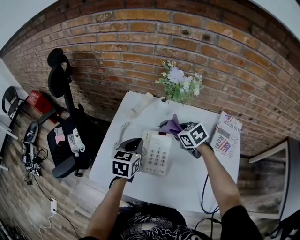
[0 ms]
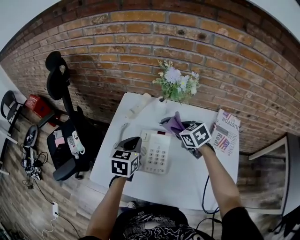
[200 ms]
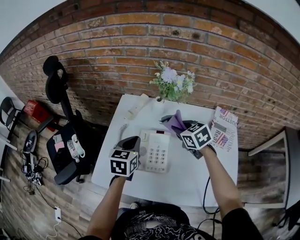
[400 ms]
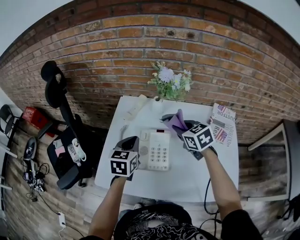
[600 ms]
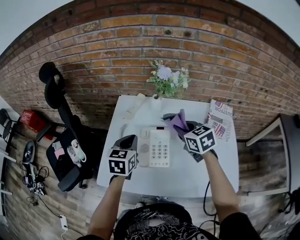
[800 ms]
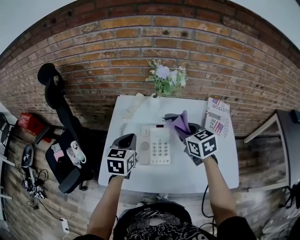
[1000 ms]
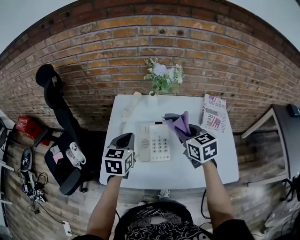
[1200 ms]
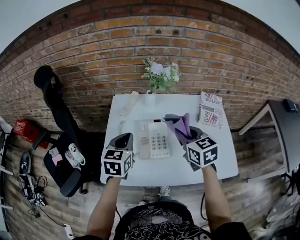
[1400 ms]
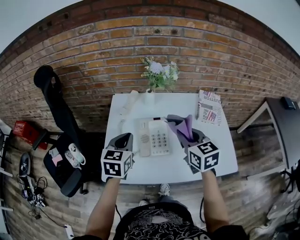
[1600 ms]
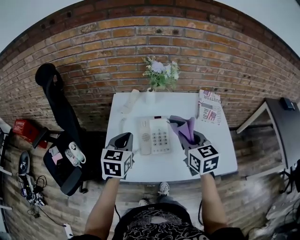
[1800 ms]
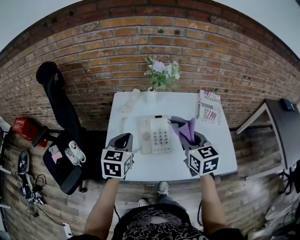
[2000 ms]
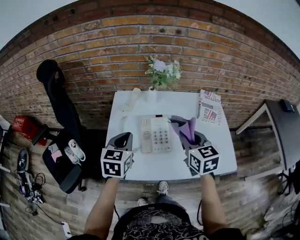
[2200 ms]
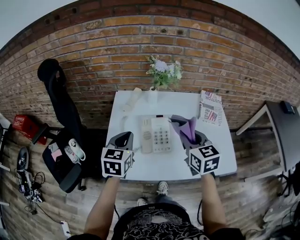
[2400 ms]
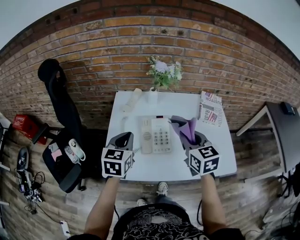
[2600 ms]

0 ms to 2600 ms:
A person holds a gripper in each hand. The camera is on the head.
0 ms to 1200 ms: The right gripper moves upward and backward, approximately 15 cm, and turns by approximately 30 degrees; the left gripper moves upward, roughly 5 cm.
1200 ms to 2600 ms: The left gripper ends up roughly 5 cm from where it was. The right gripper heads backward, covering roughly 10 cm.

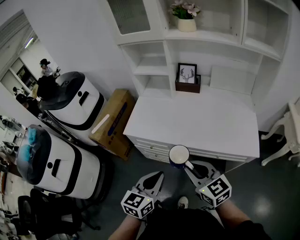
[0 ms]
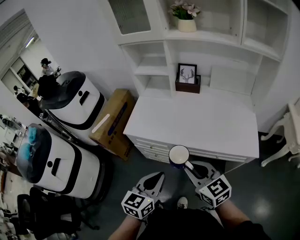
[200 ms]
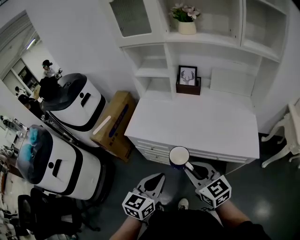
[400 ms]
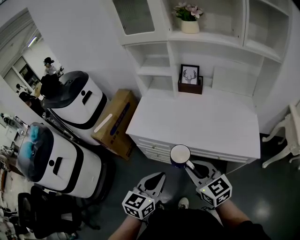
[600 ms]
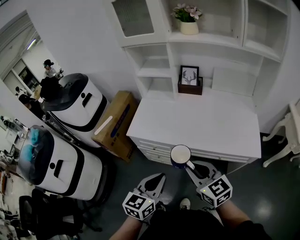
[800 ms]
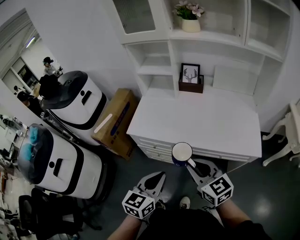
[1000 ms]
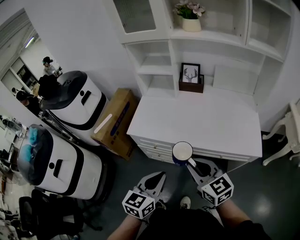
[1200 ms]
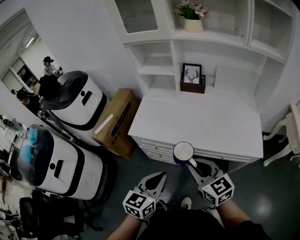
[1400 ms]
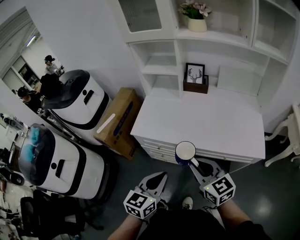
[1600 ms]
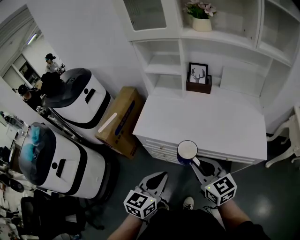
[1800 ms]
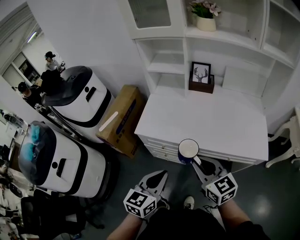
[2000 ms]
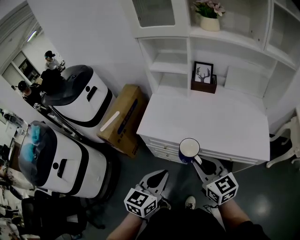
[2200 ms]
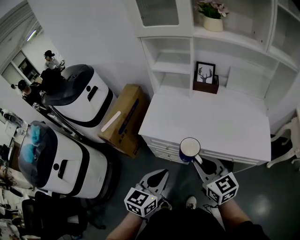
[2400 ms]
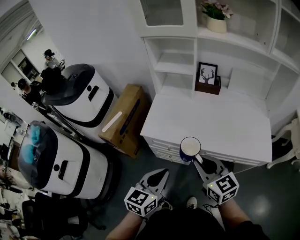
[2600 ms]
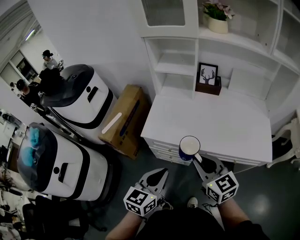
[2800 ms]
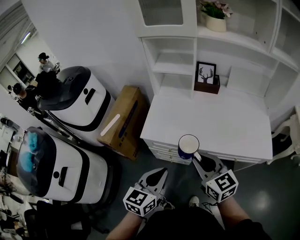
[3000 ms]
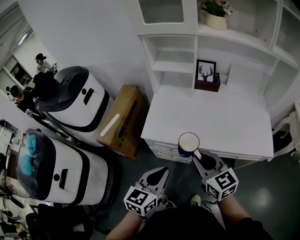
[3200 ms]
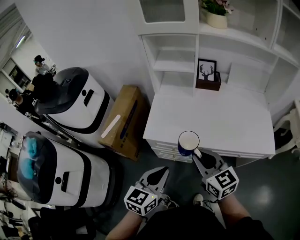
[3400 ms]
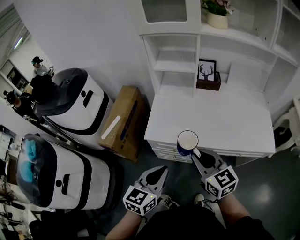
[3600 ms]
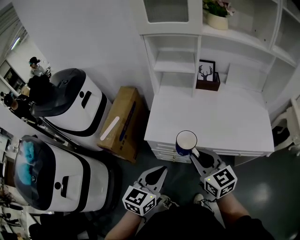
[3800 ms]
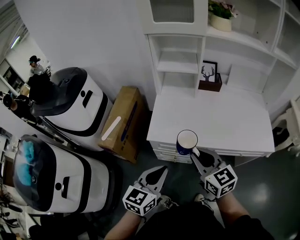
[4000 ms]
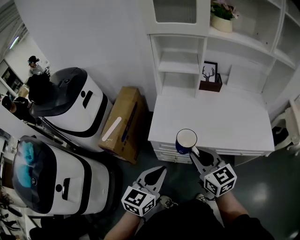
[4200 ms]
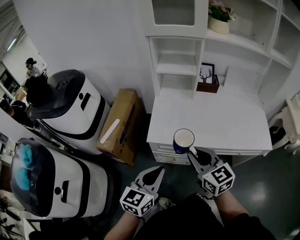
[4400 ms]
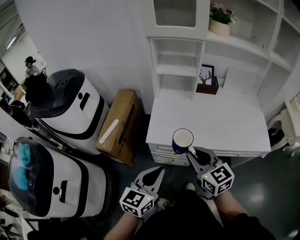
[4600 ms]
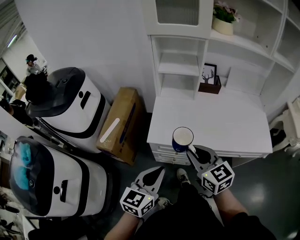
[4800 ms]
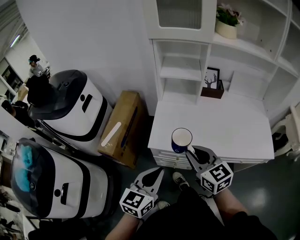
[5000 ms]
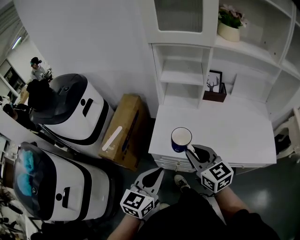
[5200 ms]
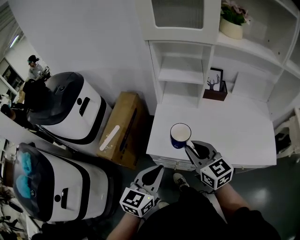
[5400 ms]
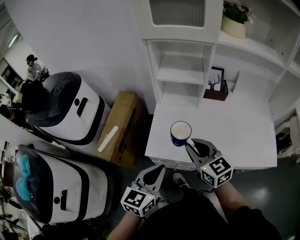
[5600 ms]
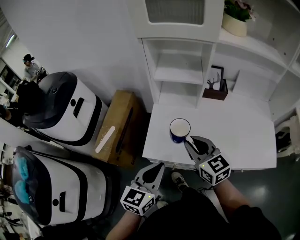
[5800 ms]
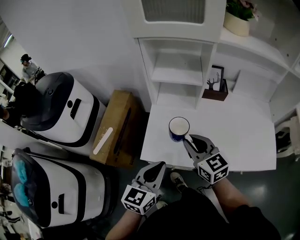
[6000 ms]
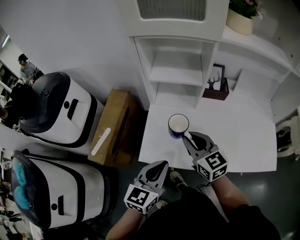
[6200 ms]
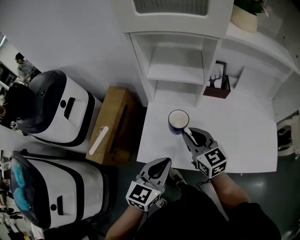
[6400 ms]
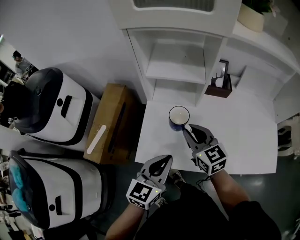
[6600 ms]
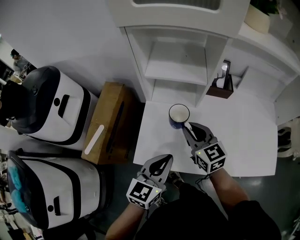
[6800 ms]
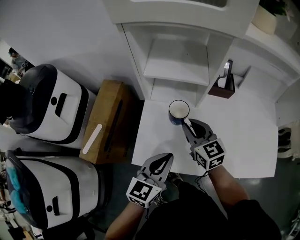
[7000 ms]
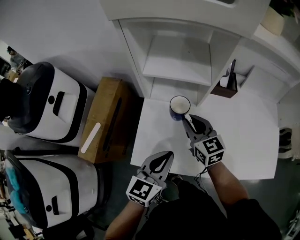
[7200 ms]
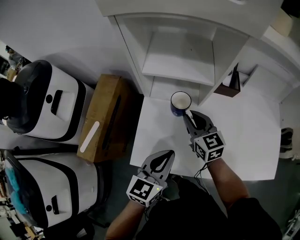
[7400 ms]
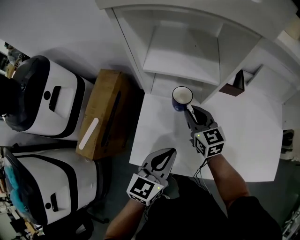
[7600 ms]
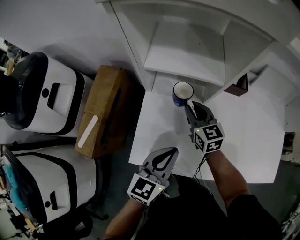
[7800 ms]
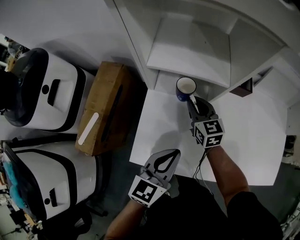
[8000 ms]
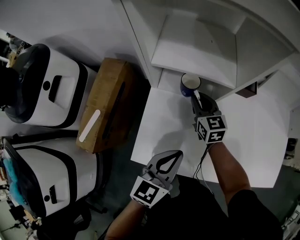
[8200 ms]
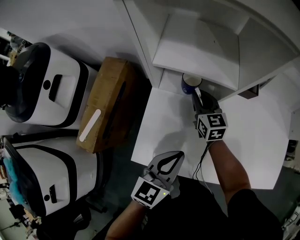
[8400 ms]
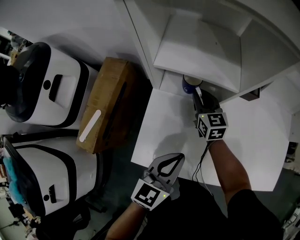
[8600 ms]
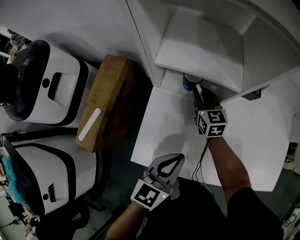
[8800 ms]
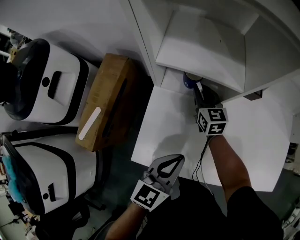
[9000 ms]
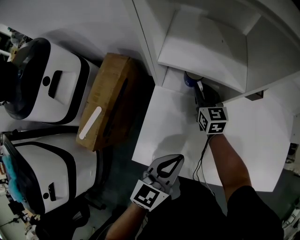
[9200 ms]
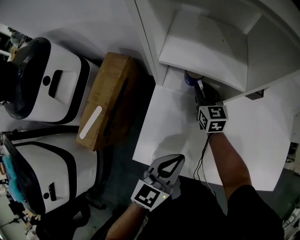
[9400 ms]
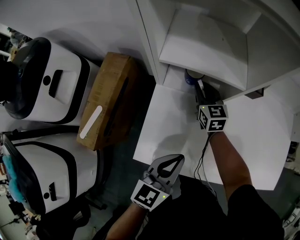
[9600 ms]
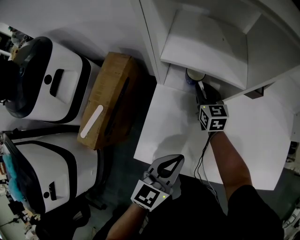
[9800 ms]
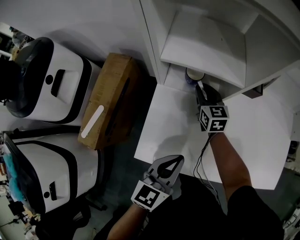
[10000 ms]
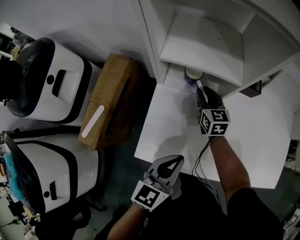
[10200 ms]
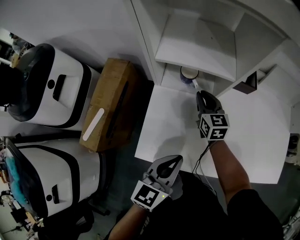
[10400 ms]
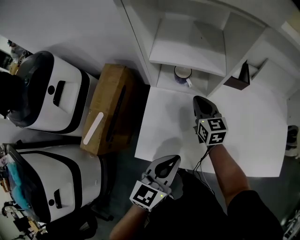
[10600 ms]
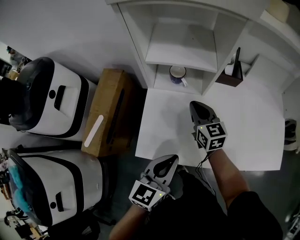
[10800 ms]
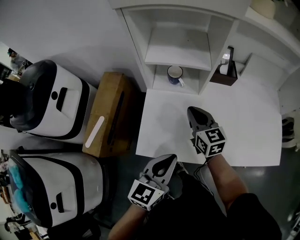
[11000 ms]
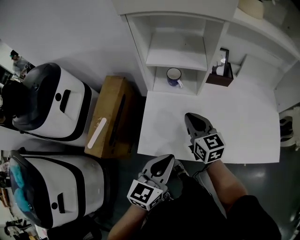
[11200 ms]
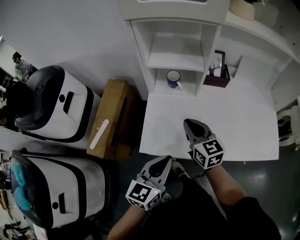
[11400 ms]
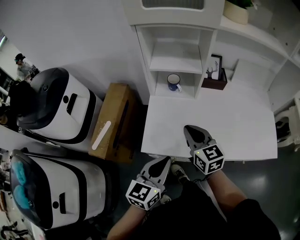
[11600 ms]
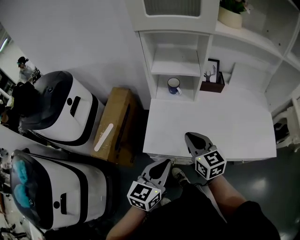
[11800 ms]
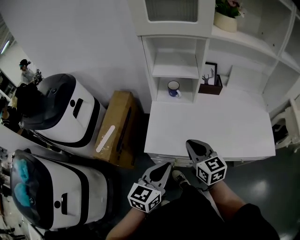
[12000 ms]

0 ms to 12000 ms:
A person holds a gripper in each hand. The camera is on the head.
0 ms to 1600 ms: The grippers stay close to where they were, moving slightly.
1600 ms to 3000 ms: Both grippers travel together to the left and forward, approximately 10 cm.
3000 ms to 4400 ms: The grippers both shift to the left by about 10 cm.
4400 ms to 6000 ms: The two grippers go roughly 20 cm forward.
6000 ms to 7600 ms: Both grippers travel together forward and downward, roughly 20 cm.
7600 ms to 9000 ms: The right gripper moves forward and downward, roughly 10 cm.
9000 ms to 10400 ms: The right gripper ends up approximately 5 cm from where it was.
10400 ms to 12000 ms: The left gripper goes some 15 cm backward. The right gripper travels backward and upward by approximately 35 cm.

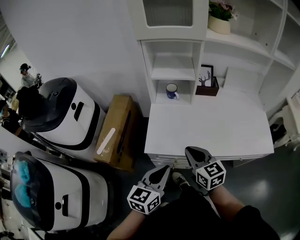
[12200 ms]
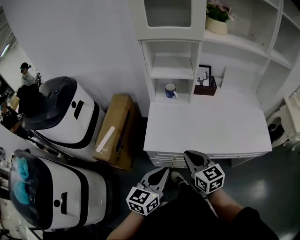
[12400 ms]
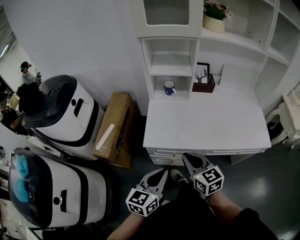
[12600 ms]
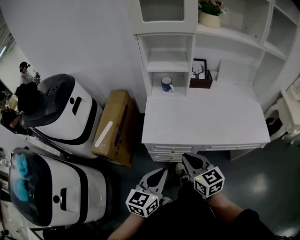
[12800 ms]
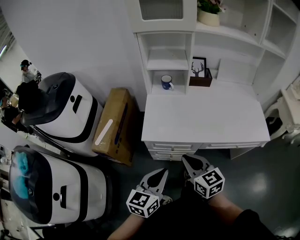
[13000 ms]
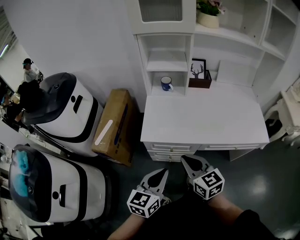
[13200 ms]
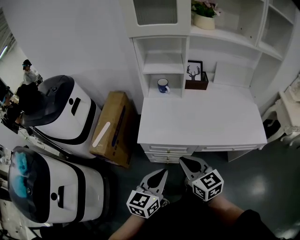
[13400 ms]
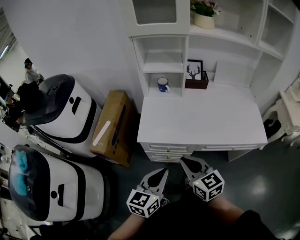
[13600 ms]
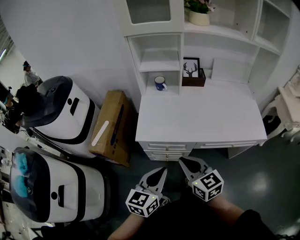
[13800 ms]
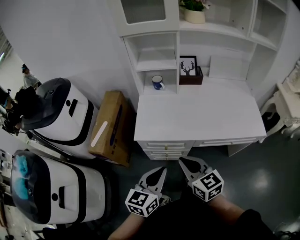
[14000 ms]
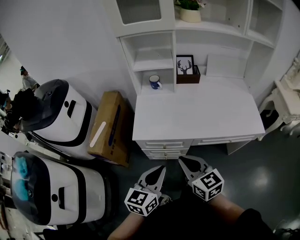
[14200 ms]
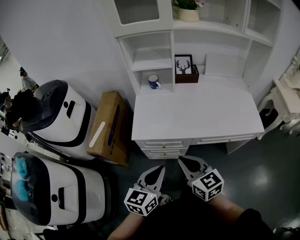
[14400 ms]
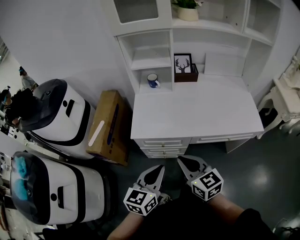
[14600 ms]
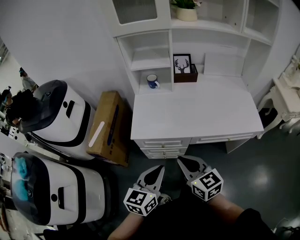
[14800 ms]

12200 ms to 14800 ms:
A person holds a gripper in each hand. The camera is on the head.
12200 ms to 13400 ms: Both grippers move backward, roughly 10 cm.
13400 ms to 14800 ms: The grippers make only small movements.

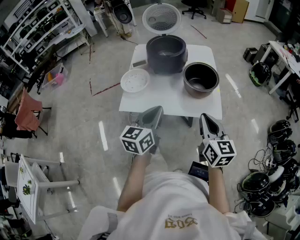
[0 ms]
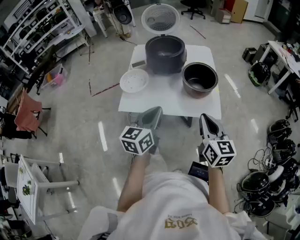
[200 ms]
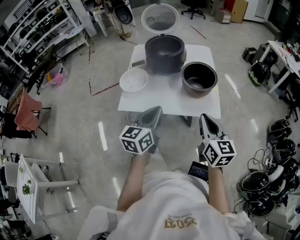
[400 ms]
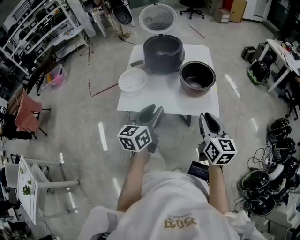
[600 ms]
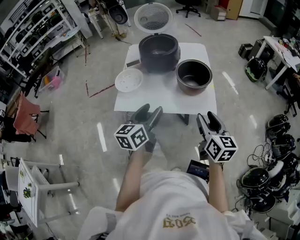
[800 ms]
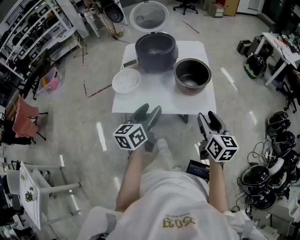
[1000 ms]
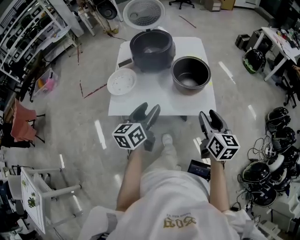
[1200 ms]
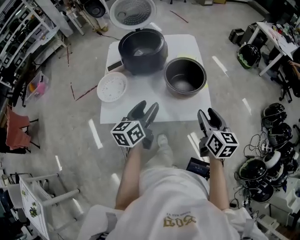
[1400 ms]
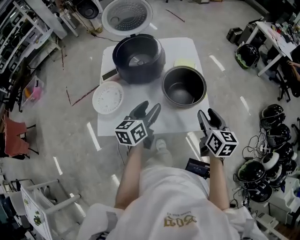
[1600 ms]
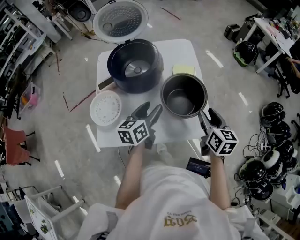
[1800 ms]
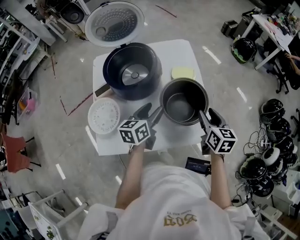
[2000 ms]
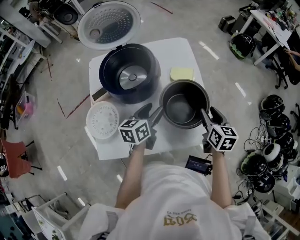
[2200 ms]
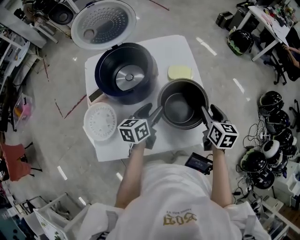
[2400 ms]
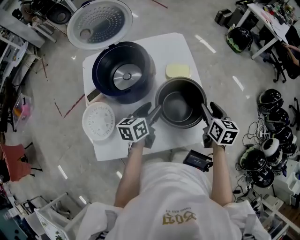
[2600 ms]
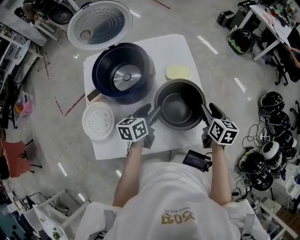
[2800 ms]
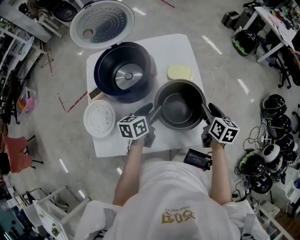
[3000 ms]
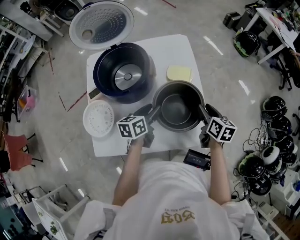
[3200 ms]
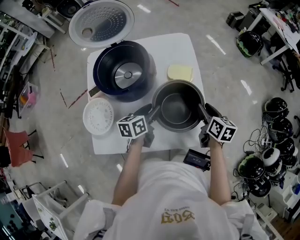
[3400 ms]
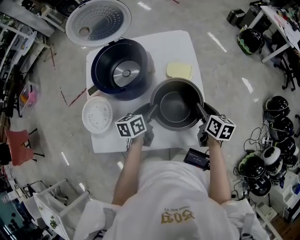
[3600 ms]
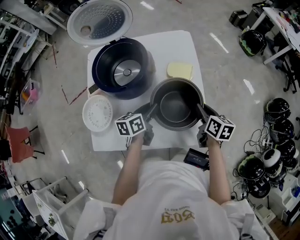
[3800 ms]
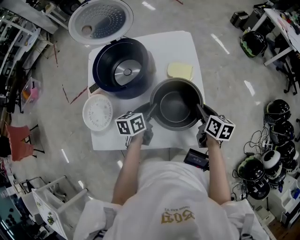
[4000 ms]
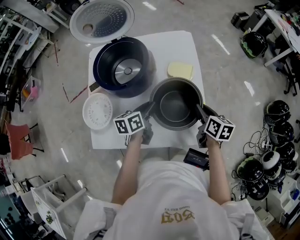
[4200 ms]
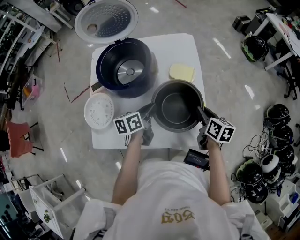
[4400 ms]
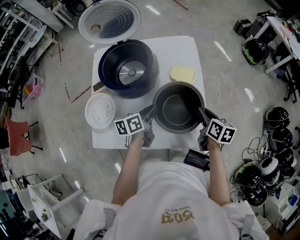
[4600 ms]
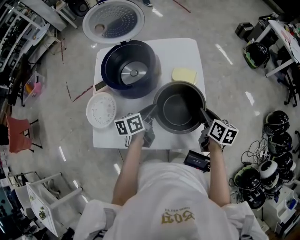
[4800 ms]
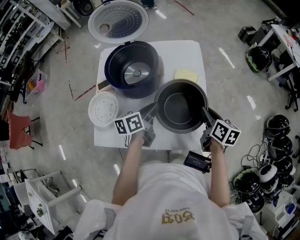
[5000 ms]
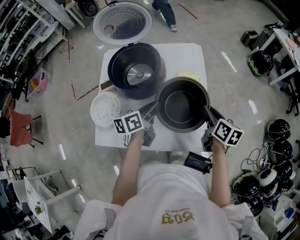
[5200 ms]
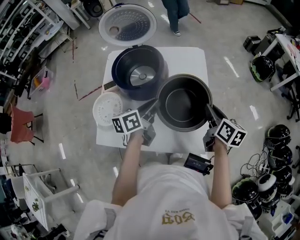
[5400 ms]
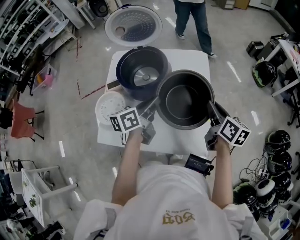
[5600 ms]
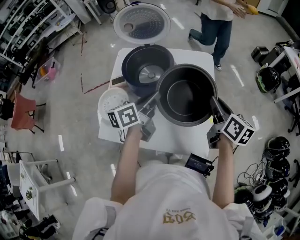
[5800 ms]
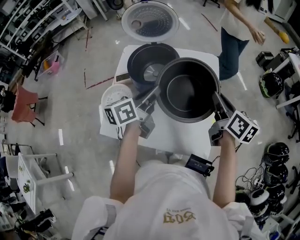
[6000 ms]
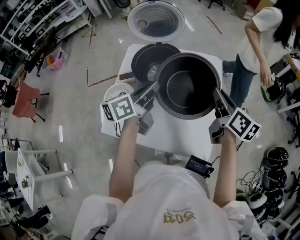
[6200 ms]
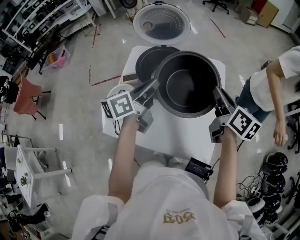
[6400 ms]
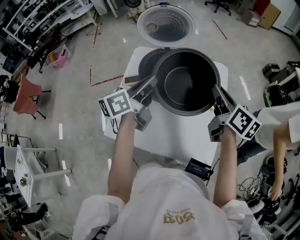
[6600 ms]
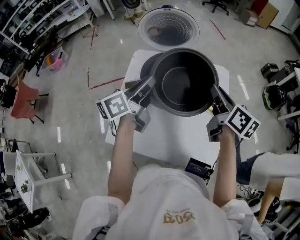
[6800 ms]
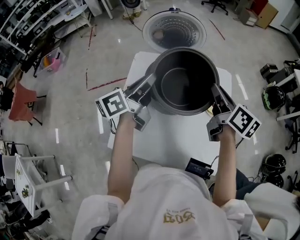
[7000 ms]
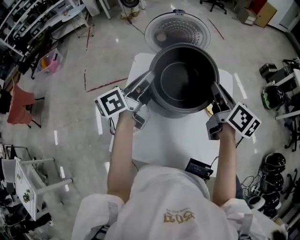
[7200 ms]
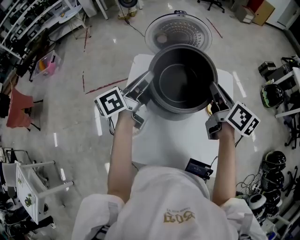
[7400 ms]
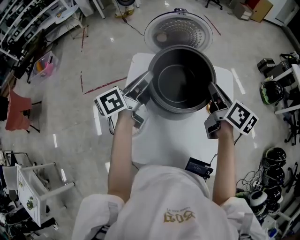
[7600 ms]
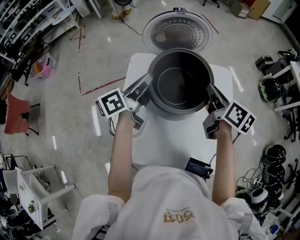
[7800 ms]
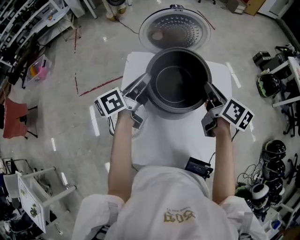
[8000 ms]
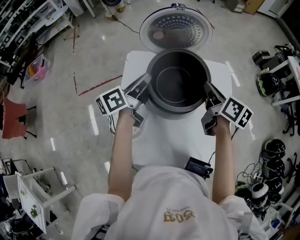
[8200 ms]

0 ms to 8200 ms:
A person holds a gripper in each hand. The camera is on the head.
0 ms to 1600 ms: The right gripper is displaced forward, to the right and downward by some 20 cm, and opens, while the left gripper shifts about 20 cm forward and downward, and opens.
1600 ms to 3200 ms: The two grippers go roughly 20 cm forward and downward.
3200 ms to 5000 ms: The right gripper closes its fingers. Meanwhile the left gripper closes up.
5000 ms to 6600 ms: The left gripper goes roughly 25 cm upward and to the left, and turns by about 20 degrees. The right gripper is displaced upward, to the left and forward by about 25 cm, and changes its angle by about 20 degrees.
6600 ms to 8200 ms: The left gripper shifts roughly 20 cm forward, to the left and downward, while the right gripper is displaced to the left, forward and downward by approximately 15 cm.
